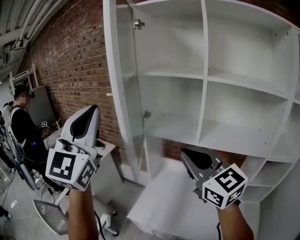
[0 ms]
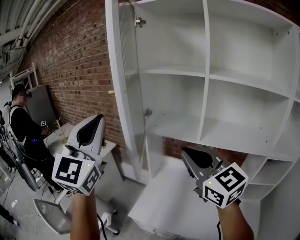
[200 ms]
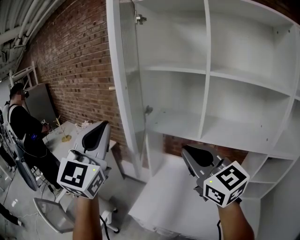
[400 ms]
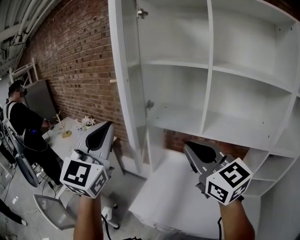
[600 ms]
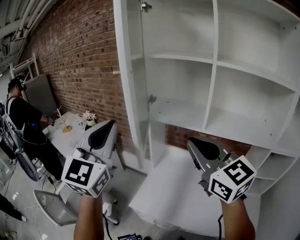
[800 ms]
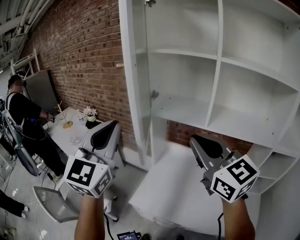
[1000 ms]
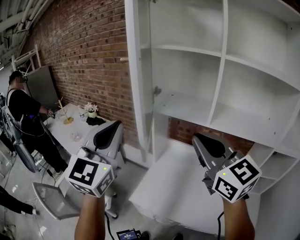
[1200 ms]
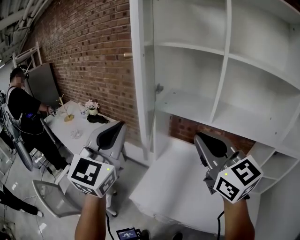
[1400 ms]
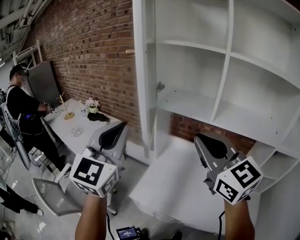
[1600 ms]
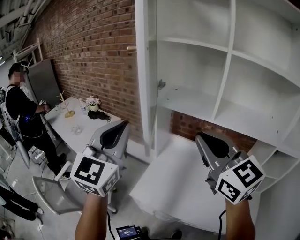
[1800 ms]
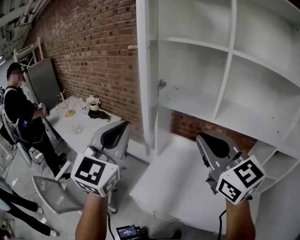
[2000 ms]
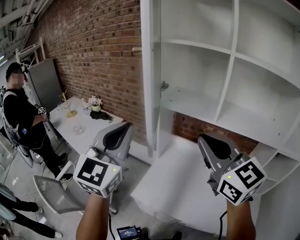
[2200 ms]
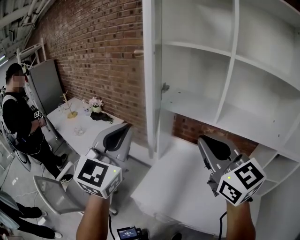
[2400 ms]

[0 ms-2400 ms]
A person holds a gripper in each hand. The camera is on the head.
0 ms to 1200 ms: The left gripper shifts roughly 15 cm downward.
1200 ms to 2400 ms: The grippers stay close to where they were, moving slightly.

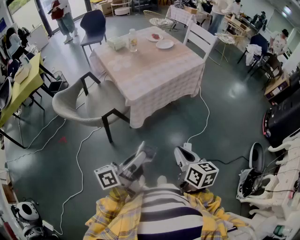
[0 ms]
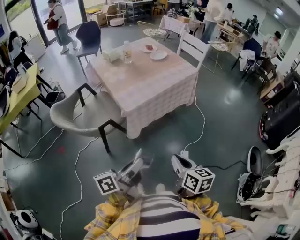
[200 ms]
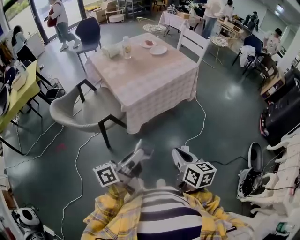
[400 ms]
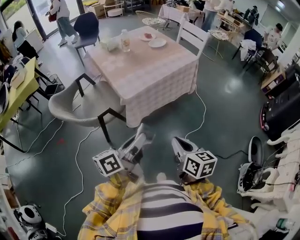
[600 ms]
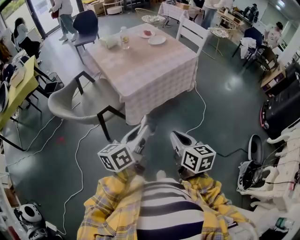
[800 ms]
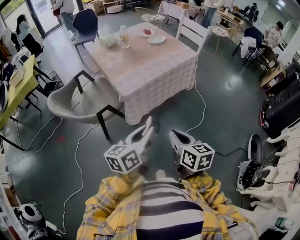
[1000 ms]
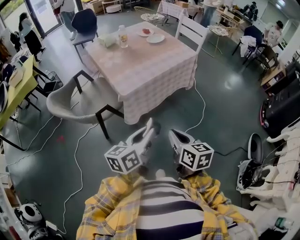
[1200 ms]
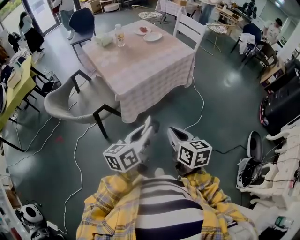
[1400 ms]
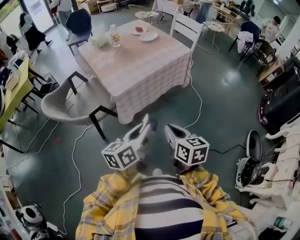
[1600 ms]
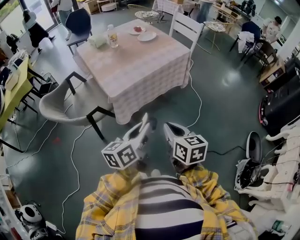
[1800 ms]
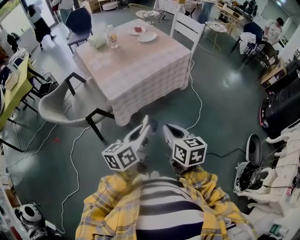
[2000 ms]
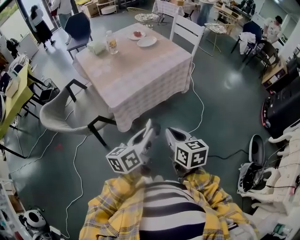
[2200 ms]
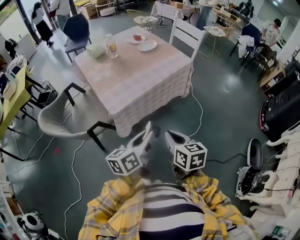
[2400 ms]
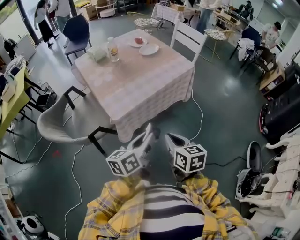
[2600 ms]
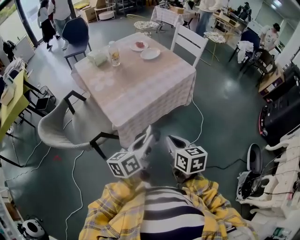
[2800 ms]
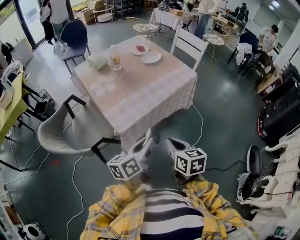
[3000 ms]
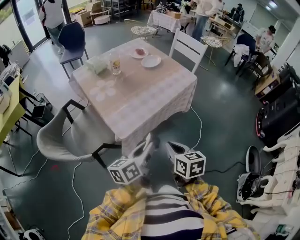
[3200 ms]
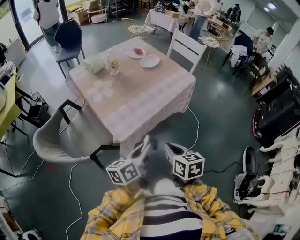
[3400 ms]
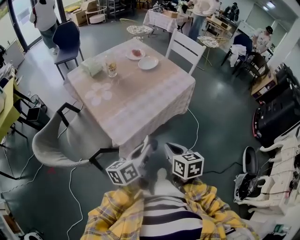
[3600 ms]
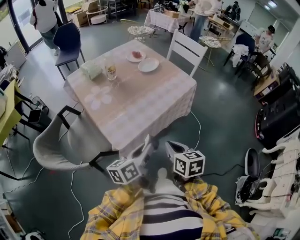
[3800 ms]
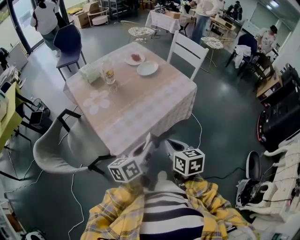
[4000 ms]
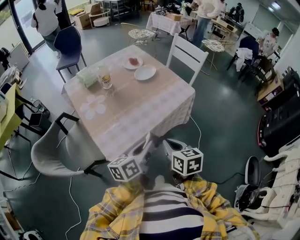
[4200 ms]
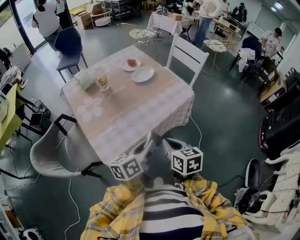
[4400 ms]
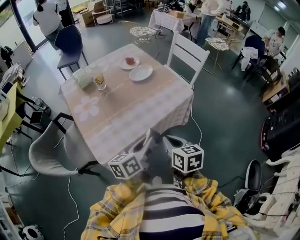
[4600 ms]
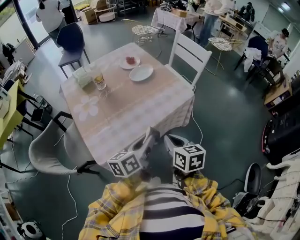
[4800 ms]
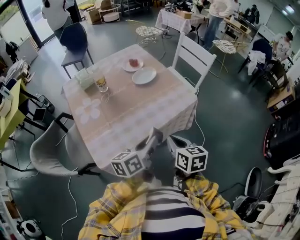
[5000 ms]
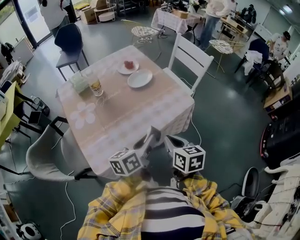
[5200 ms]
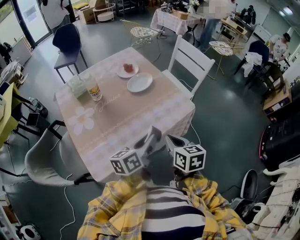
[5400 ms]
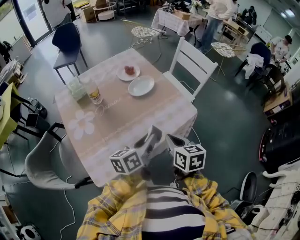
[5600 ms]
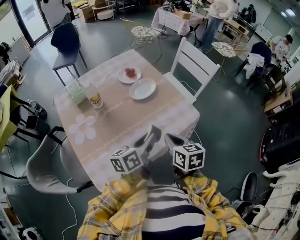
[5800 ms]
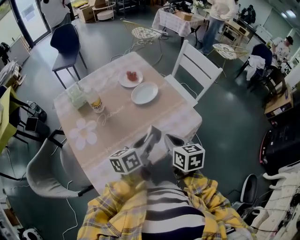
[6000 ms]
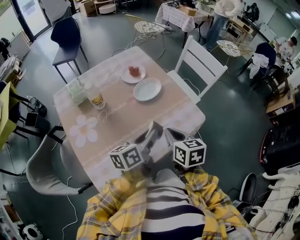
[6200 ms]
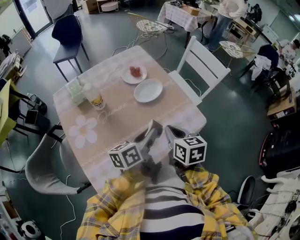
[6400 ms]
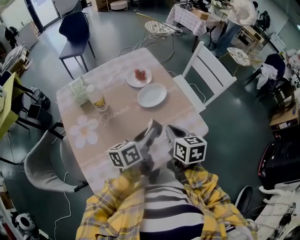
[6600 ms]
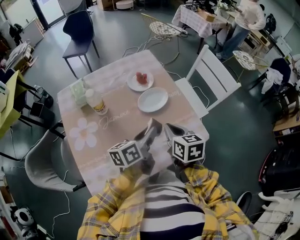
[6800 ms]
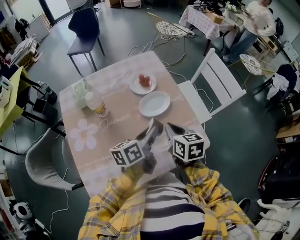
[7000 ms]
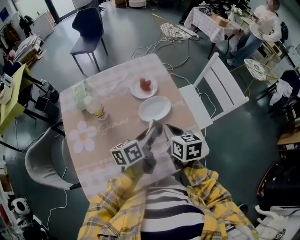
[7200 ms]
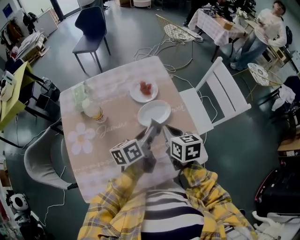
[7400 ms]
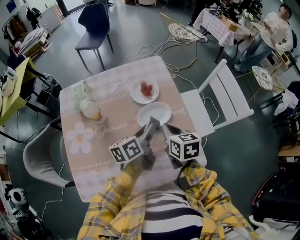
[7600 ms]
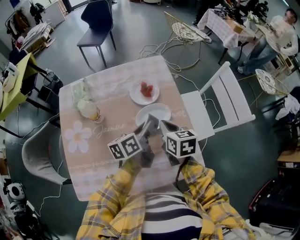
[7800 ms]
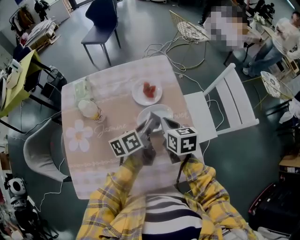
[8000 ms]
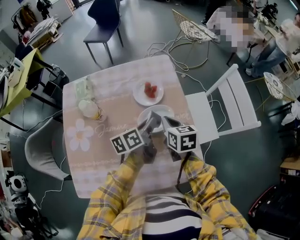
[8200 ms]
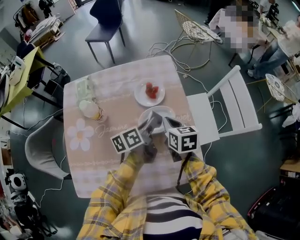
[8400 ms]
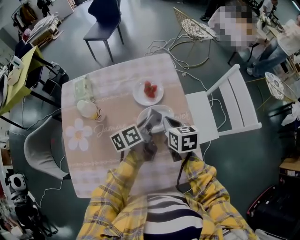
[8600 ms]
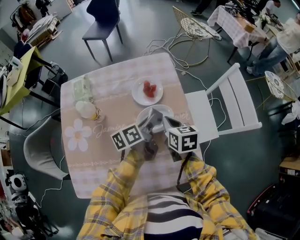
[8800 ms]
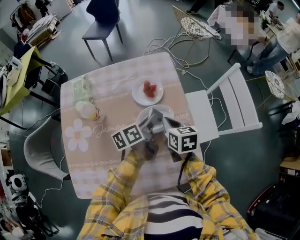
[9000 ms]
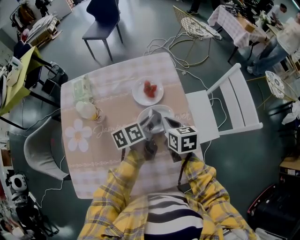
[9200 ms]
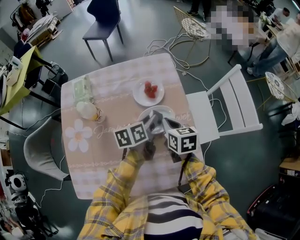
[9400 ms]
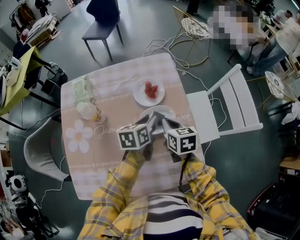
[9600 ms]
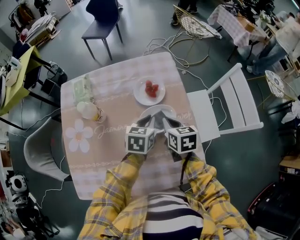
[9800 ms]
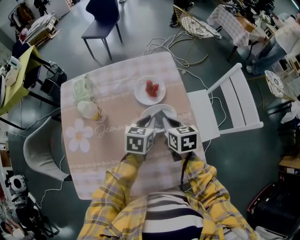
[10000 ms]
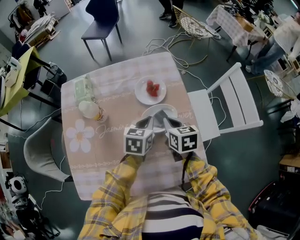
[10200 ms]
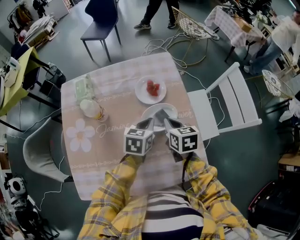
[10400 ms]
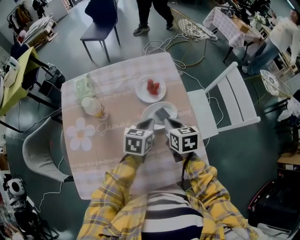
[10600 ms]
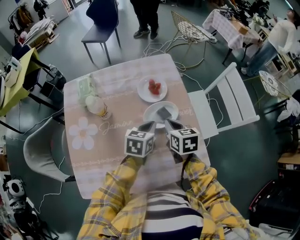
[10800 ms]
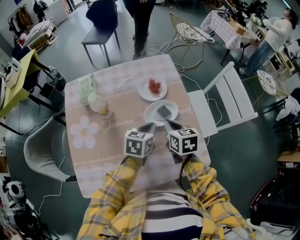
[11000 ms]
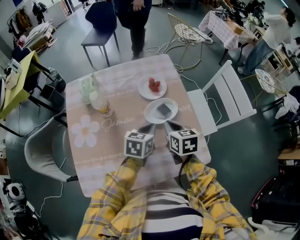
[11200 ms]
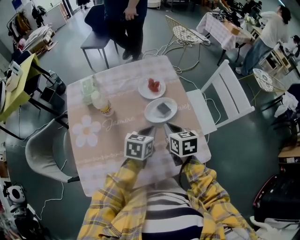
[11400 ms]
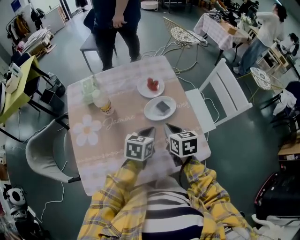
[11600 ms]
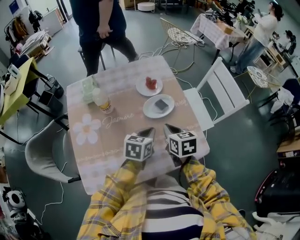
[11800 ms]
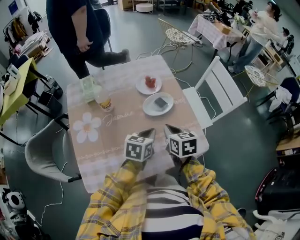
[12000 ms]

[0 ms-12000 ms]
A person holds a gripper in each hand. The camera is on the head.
0 ms to 1600 ms: The left gripper heads to the right and forward, covering roughly 10 cm, and turns by some 30 degrees.
1600 ms to 3000 ms: Both grippers move forward, about 15 cm.
3000 ms to 4400 ms: Both grippers travel together forward, approximately 15 cm.
4400 ms to 6000 ms: The two grippers go about 20 cm forward.
6000 ms to 7600 ms: Both grippers travel together forward, about 20 cm. The left gripper changes its angle by roughly 20 degrees.
7600 ms to 9000 ms: Both grippers move forward, some 5 cm.
9000 ms to 10400 ms: The left gripper rotates around the line of its fingers by about 40 degrees, clockwise from behind.
10400 ms to 12000 ms: The two grippers go about 15 cm backward.

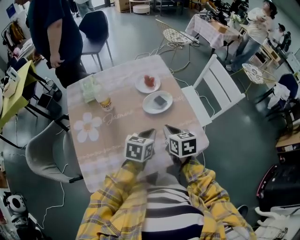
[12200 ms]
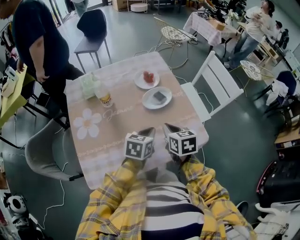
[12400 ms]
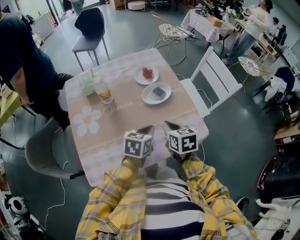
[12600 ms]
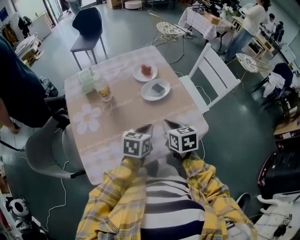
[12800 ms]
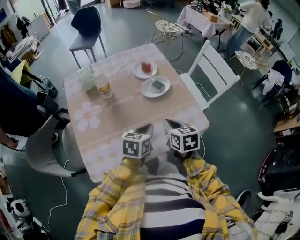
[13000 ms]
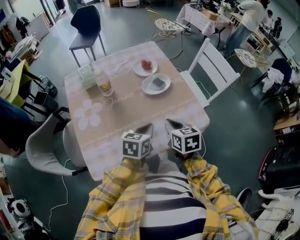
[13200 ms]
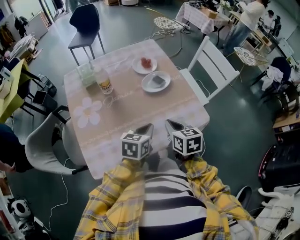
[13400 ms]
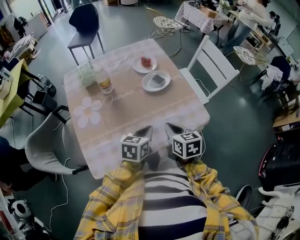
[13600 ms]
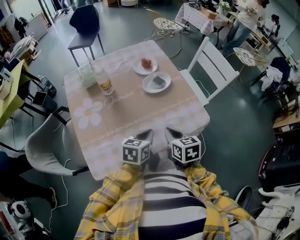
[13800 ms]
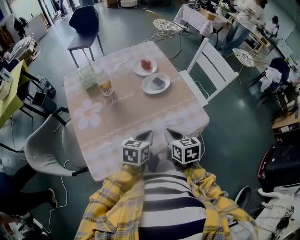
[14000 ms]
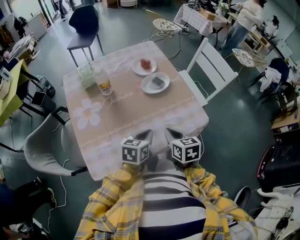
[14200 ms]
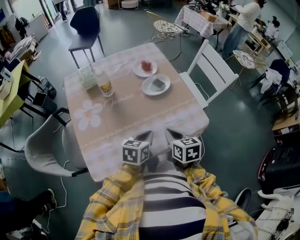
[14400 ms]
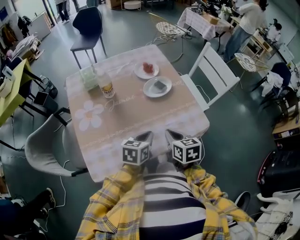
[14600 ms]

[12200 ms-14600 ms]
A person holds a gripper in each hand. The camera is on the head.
12200 ms to 13400 ms: The two grippers go about 10 cm backward.
13400 ms to 14600 ms: The grippers move only a little.

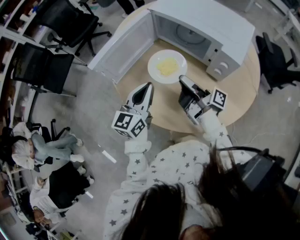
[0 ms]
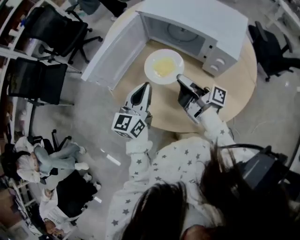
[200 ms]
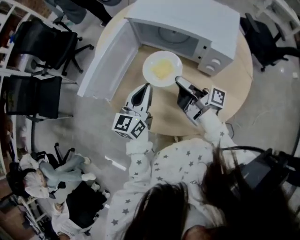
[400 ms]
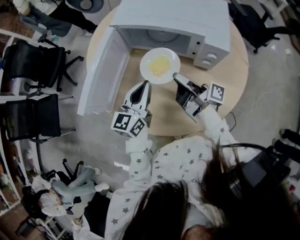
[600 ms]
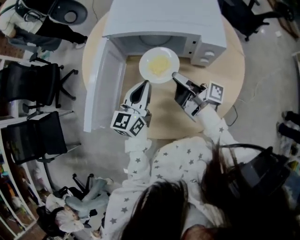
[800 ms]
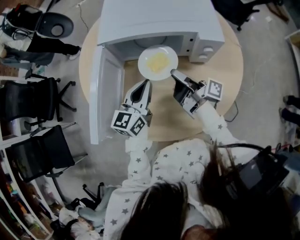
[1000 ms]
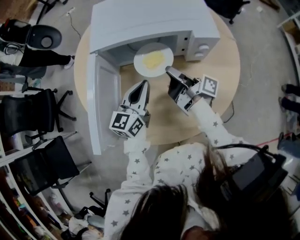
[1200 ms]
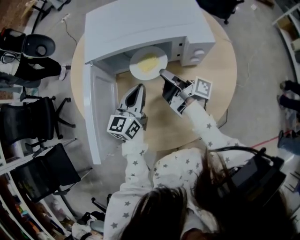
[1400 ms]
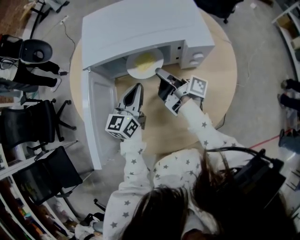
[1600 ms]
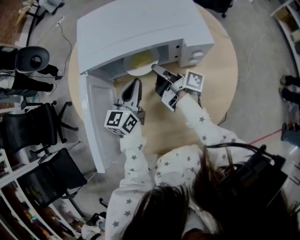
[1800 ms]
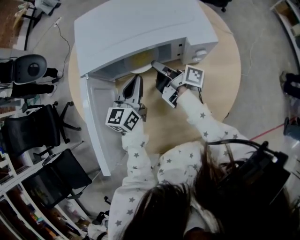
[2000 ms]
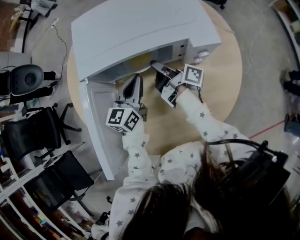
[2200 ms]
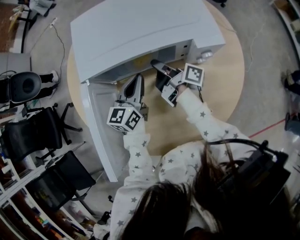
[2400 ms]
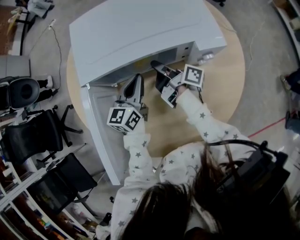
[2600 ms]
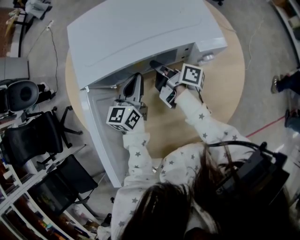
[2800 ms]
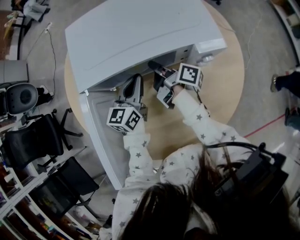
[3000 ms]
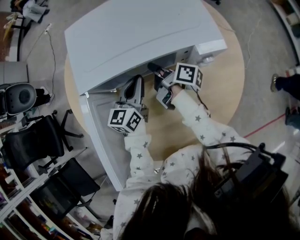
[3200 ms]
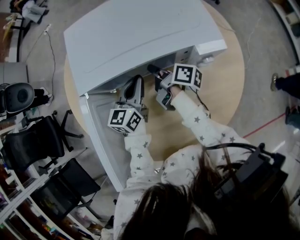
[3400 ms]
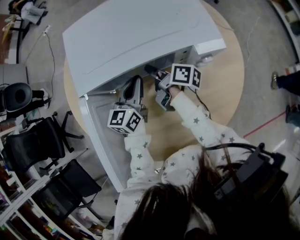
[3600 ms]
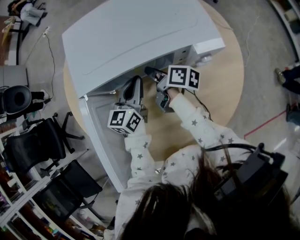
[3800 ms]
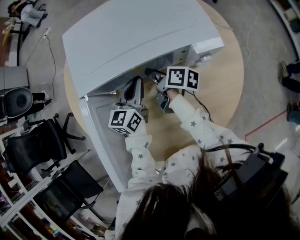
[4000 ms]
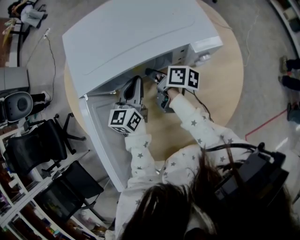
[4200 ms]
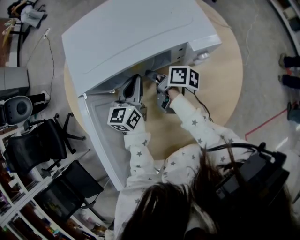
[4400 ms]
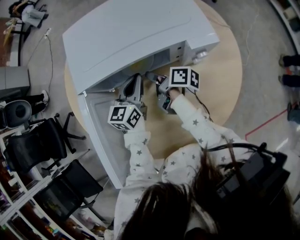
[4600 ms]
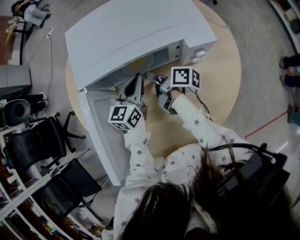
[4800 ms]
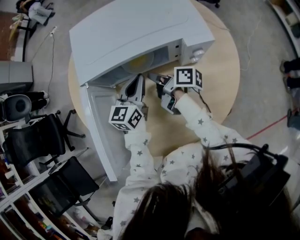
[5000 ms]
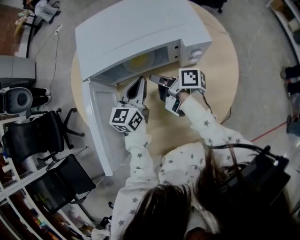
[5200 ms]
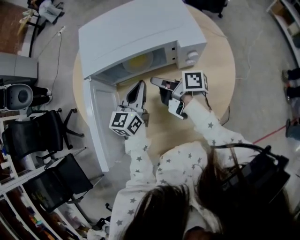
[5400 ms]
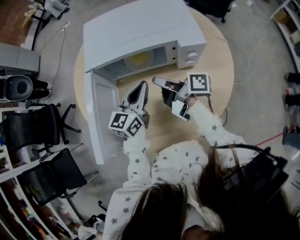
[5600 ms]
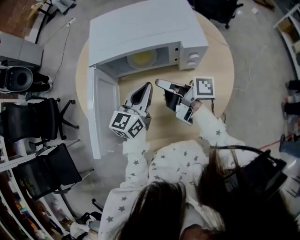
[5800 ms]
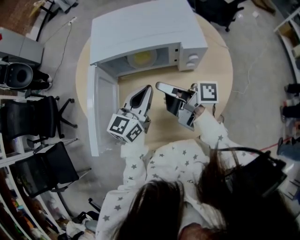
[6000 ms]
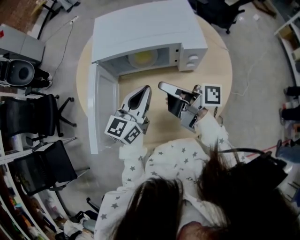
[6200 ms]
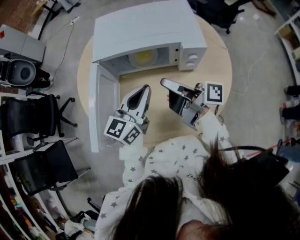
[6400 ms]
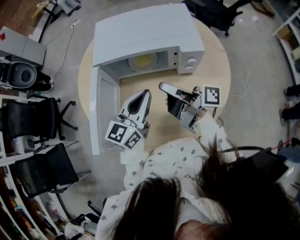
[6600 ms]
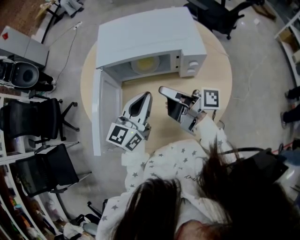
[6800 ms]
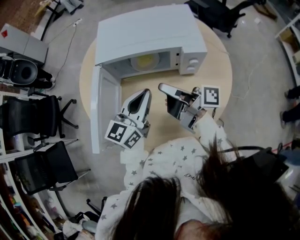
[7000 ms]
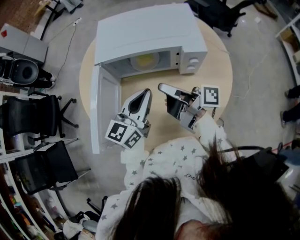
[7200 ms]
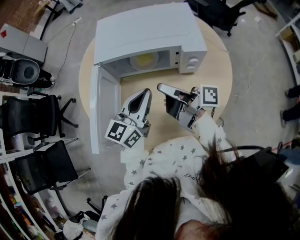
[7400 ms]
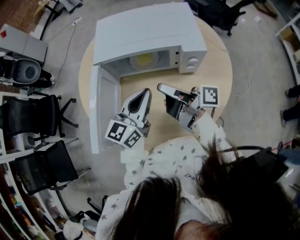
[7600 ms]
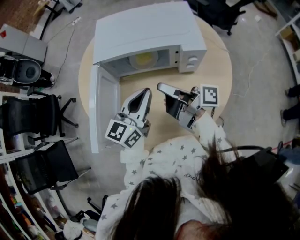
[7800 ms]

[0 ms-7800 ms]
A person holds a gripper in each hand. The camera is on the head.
0 ms to 1600 ms: The left gripper moves approximately 20 cm, and changes its angle by some 40 degrees.
1600 ms to 3200 ms: The left gripper changes place by about 10 cm.
4600 ms to 6200 ms: The left gripper changes place by approximately 20 cm.
